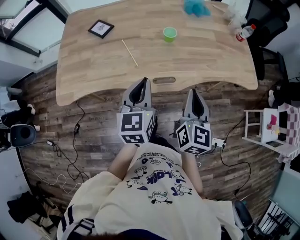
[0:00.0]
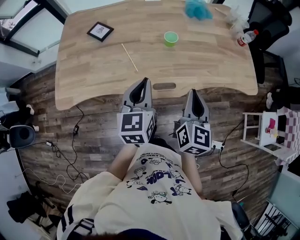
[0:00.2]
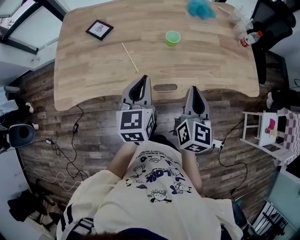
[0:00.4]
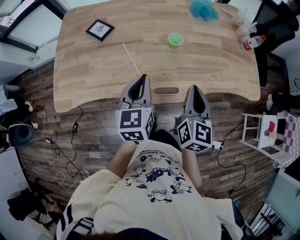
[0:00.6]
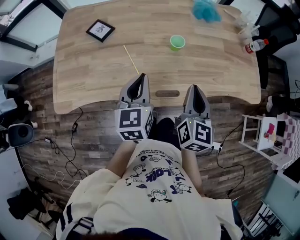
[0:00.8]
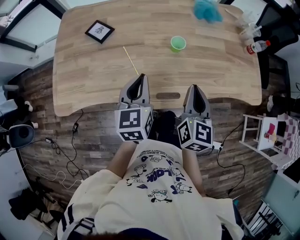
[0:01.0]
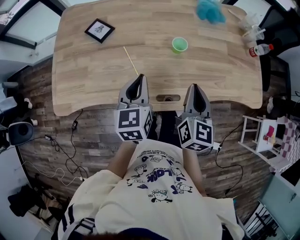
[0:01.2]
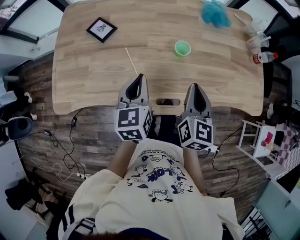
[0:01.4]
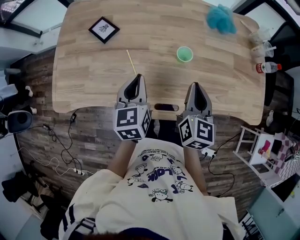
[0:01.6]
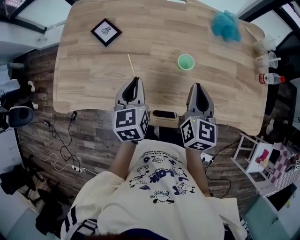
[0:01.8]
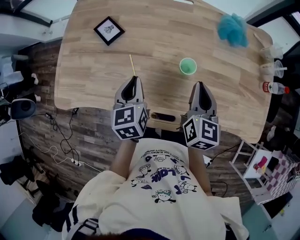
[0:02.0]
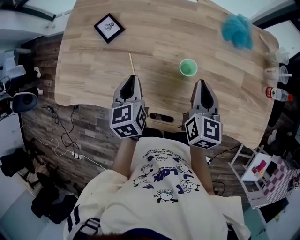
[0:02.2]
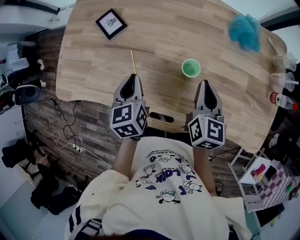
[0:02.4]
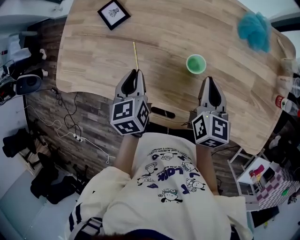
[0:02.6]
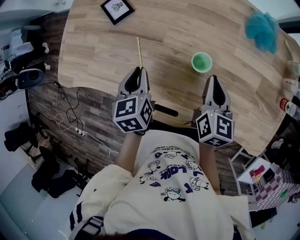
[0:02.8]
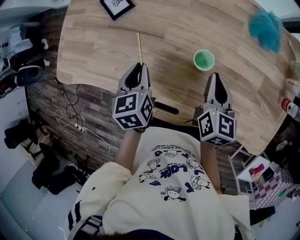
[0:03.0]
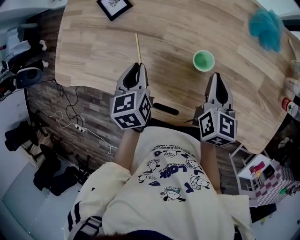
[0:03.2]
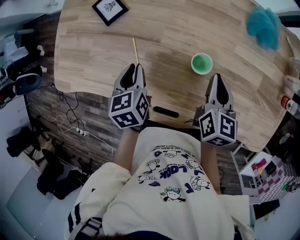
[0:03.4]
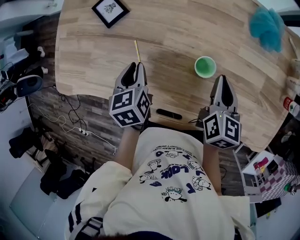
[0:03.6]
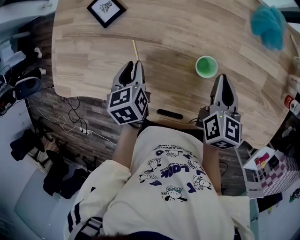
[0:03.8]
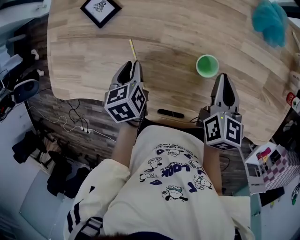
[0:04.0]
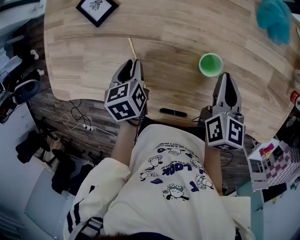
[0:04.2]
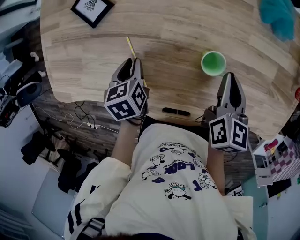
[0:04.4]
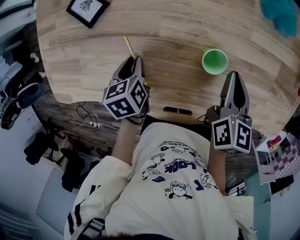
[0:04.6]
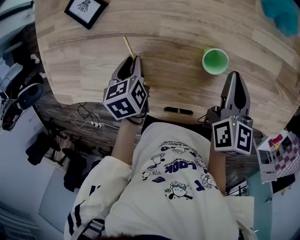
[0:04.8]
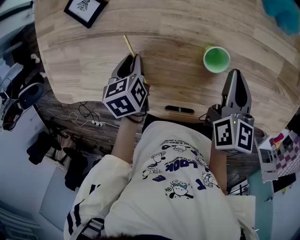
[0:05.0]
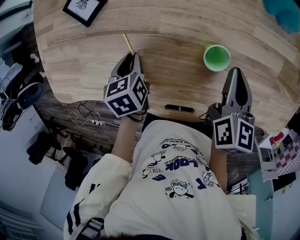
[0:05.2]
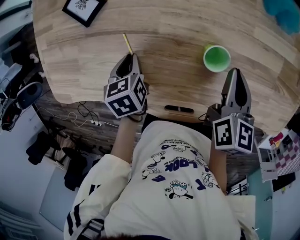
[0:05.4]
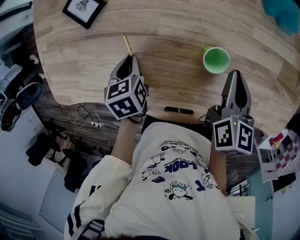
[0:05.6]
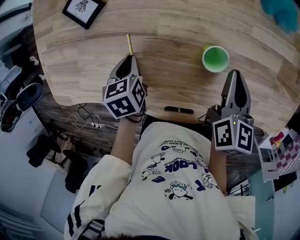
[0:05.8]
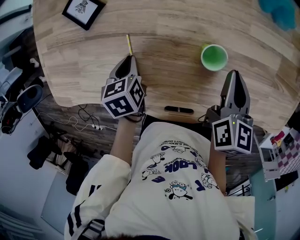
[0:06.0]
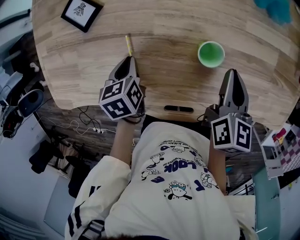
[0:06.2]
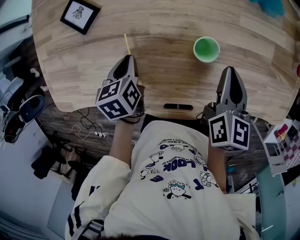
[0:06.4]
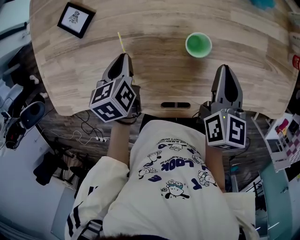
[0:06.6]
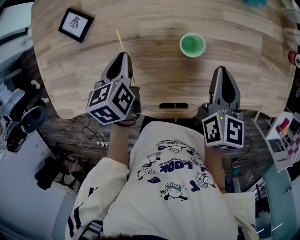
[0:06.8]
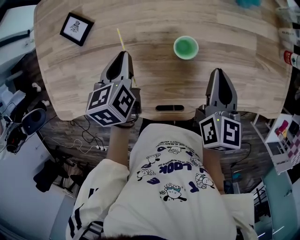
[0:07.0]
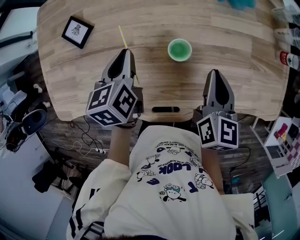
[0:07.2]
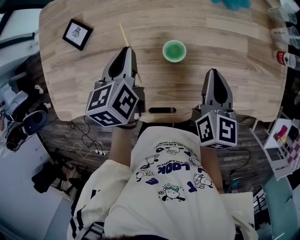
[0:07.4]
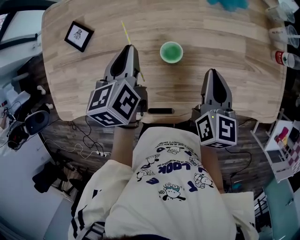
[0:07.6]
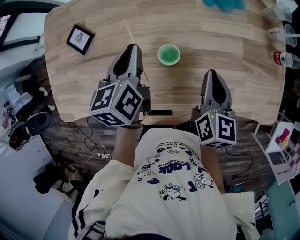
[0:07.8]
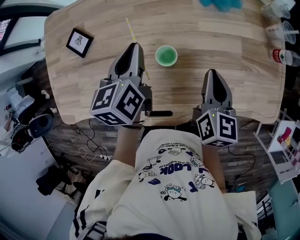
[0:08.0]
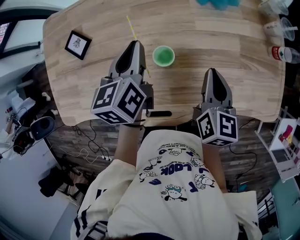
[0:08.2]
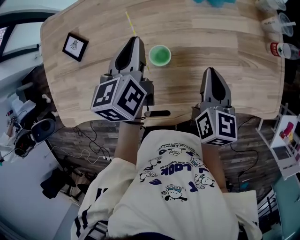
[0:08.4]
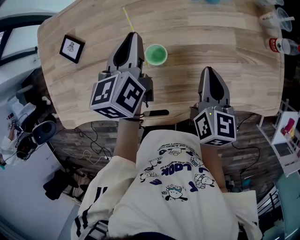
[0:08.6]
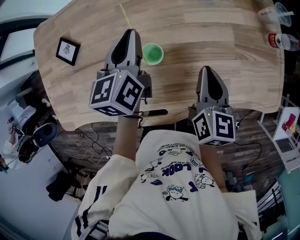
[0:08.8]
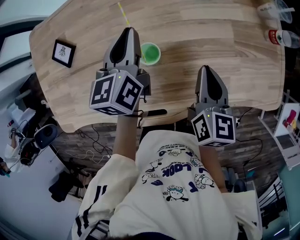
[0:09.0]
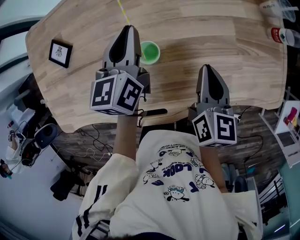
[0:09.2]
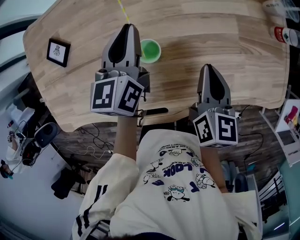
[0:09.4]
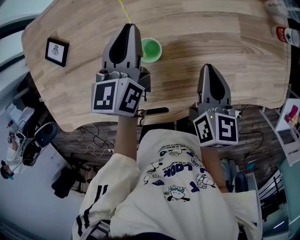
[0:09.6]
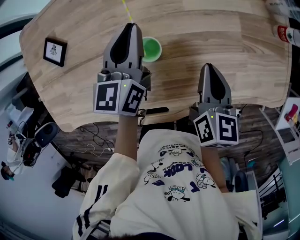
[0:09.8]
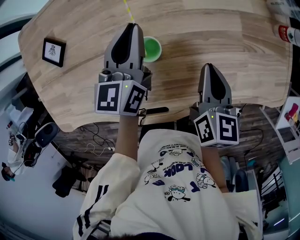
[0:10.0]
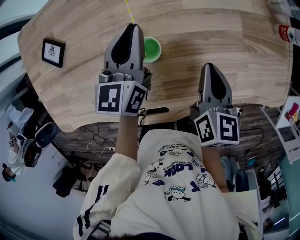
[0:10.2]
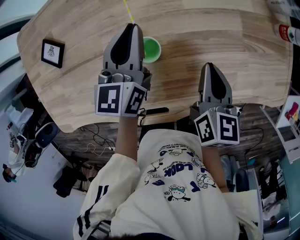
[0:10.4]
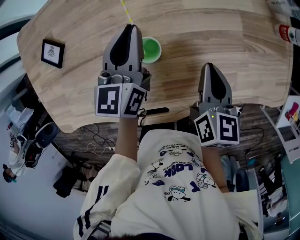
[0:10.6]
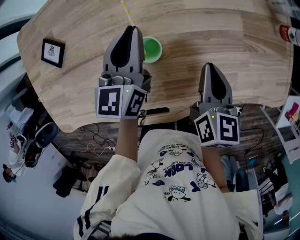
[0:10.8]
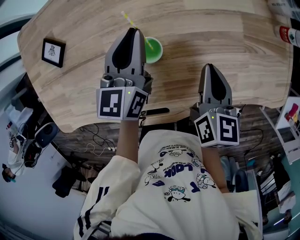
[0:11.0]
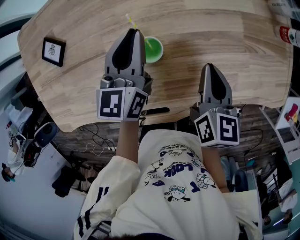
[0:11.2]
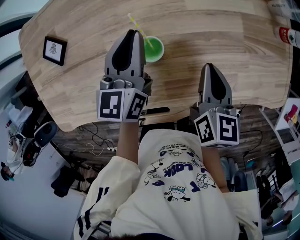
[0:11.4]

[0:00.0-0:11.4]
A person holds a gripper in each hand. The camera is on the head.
0:00.0 to 0:01.4: The right gripper heads forward, covering some 15 cm, while the left gripper heads forward and to the left, covering some 15 cm.
0:01.4 to 0:02.8: The left gripper shifts roughly 5 cm downward, and swivels approximately 30 degrees, while the right gripper travels forward and downward by some 15 cm, and swivels about 20 degrees.
0:02.8 to 0:04.2: The left gripper heads downward, covering approximately 10 cm.
0:04.2 to 0:05.6: There are only small adjustments of the grippers.
0:05.6 to 0:07.2: The left gripper moves upward, to the right and forward, about 15 cm, and turns by some 30 degrees; the right gripper changes place by approximately 5 cm.
0:07.2 to 0:08.6: The right gripper heads to the right, covering about 5 cm, while the left gripper moves to the right, forward and upward, some 15 cm.
0:08.6 to 0:10.0: The left gripper shifts by about 5 cm.
0:10.0 to 0:11.4: The grippers move only a little.

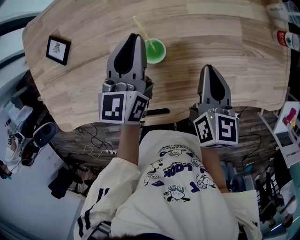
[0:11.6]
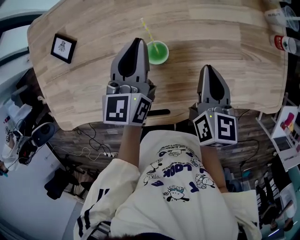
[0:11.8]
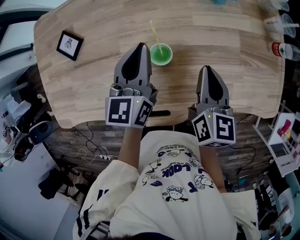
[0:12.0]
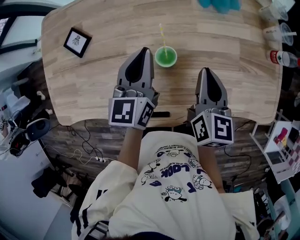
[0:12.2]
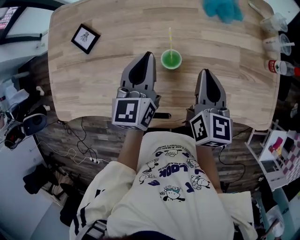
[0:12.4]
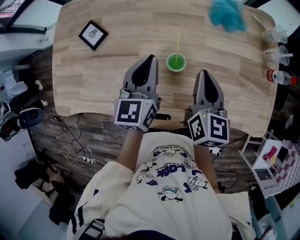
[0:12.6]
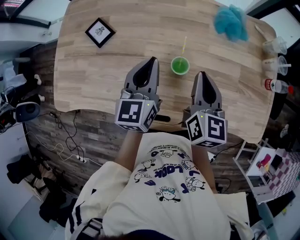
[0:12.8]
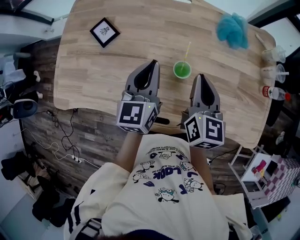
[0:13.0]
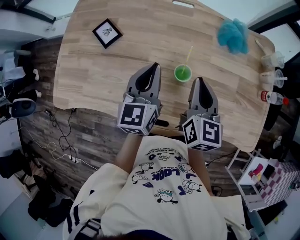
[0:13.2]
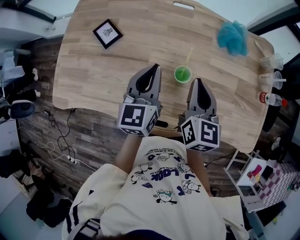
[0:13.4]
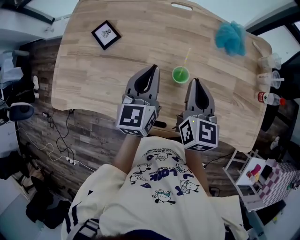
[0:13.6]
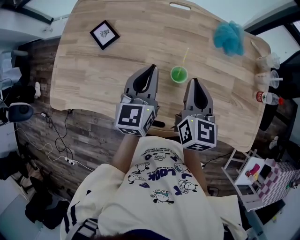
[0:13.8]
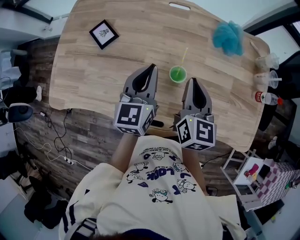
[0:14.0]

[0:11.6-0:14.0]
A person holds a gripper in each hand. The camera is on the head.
0:11.6 to 0:12.8: The left gripper shifts about 10 cm upward, to the left and backward. The right gripper goes about 15 cm upward and to the left, and rotates roughly 20 degrees.
0:12.8 to 0:14.0: The grippers stay close to where they were, moving slightly.

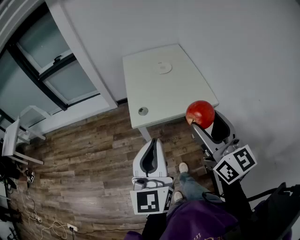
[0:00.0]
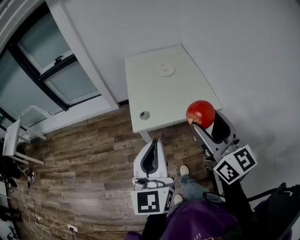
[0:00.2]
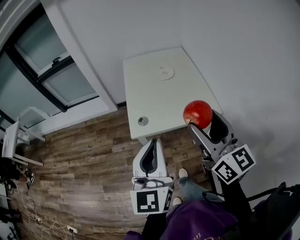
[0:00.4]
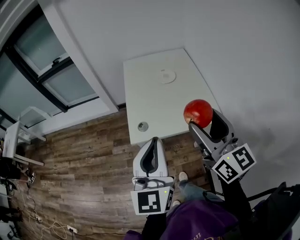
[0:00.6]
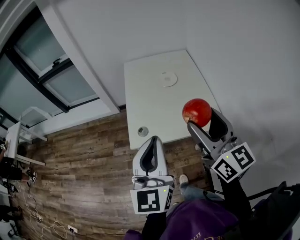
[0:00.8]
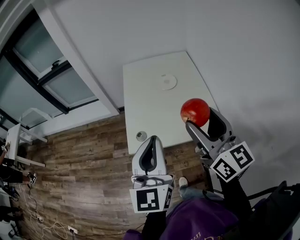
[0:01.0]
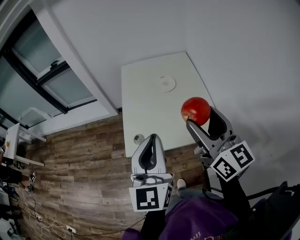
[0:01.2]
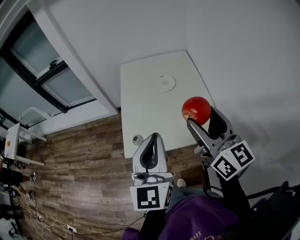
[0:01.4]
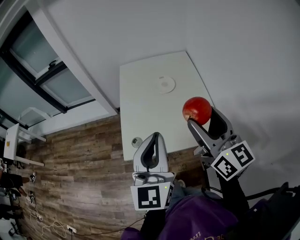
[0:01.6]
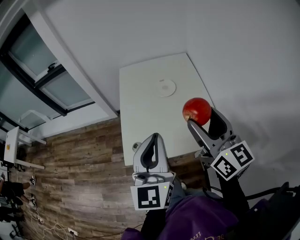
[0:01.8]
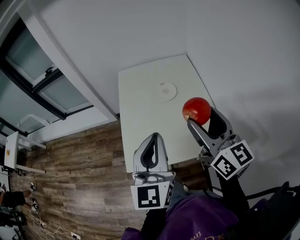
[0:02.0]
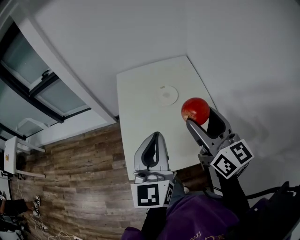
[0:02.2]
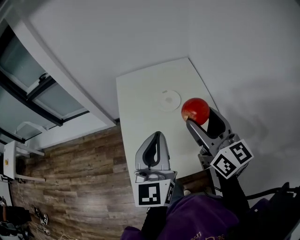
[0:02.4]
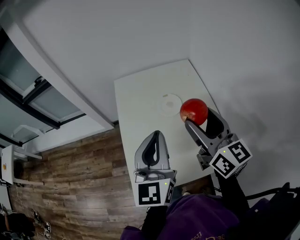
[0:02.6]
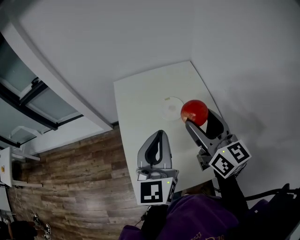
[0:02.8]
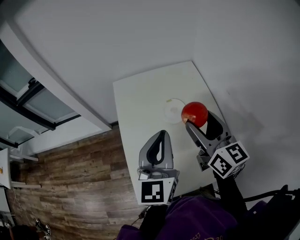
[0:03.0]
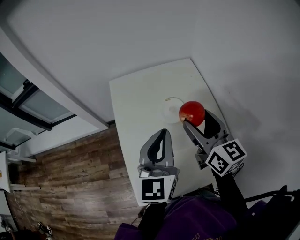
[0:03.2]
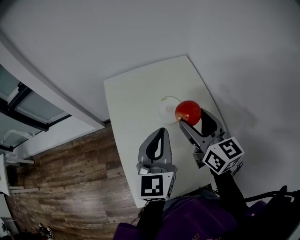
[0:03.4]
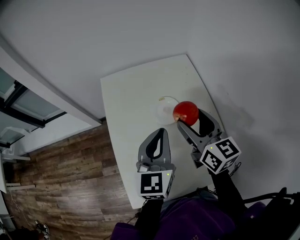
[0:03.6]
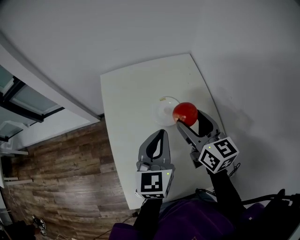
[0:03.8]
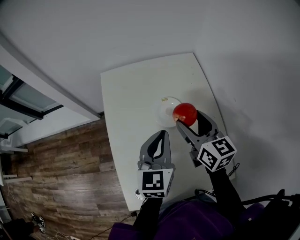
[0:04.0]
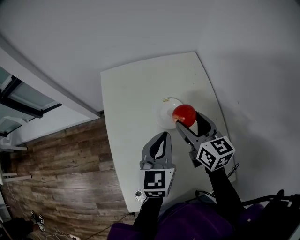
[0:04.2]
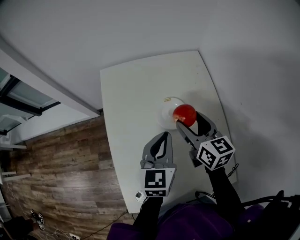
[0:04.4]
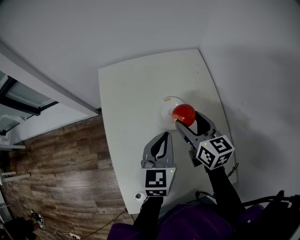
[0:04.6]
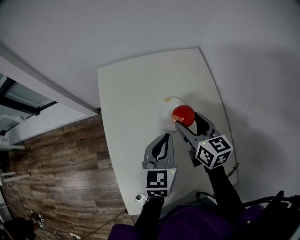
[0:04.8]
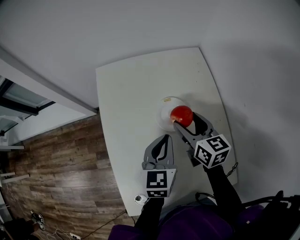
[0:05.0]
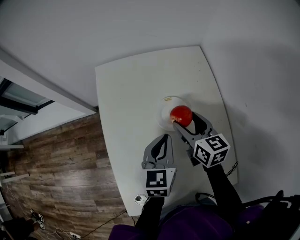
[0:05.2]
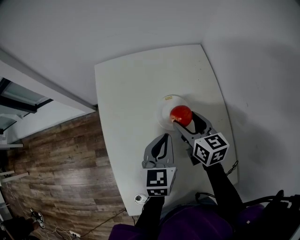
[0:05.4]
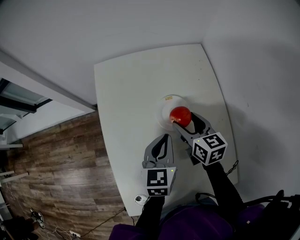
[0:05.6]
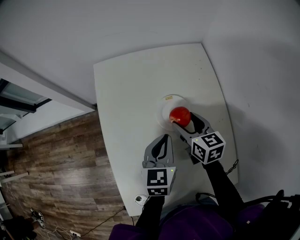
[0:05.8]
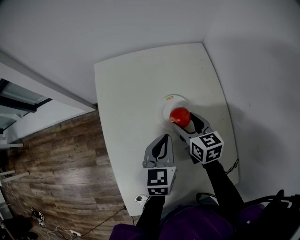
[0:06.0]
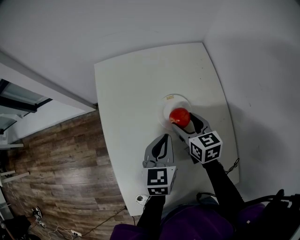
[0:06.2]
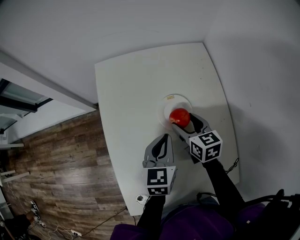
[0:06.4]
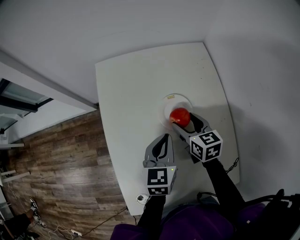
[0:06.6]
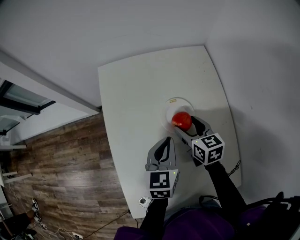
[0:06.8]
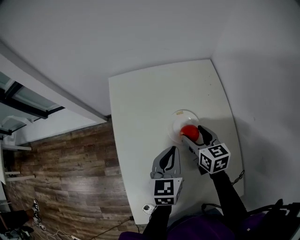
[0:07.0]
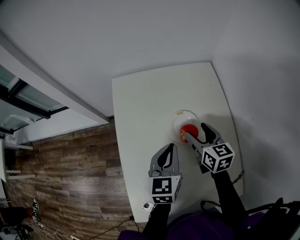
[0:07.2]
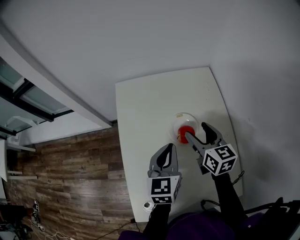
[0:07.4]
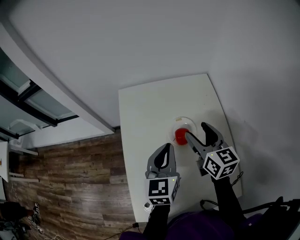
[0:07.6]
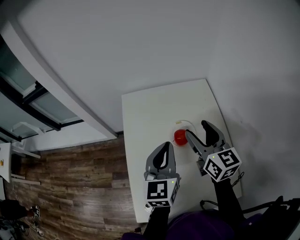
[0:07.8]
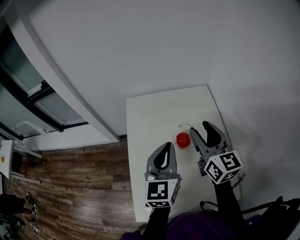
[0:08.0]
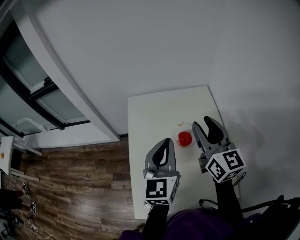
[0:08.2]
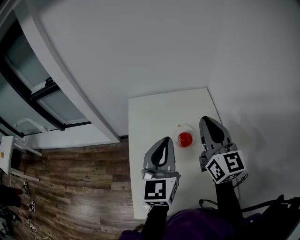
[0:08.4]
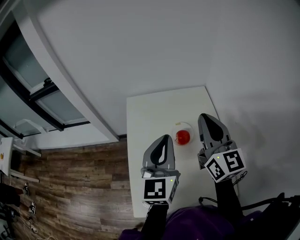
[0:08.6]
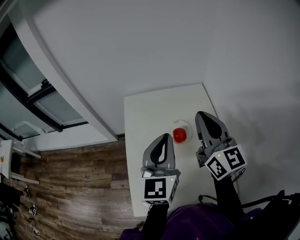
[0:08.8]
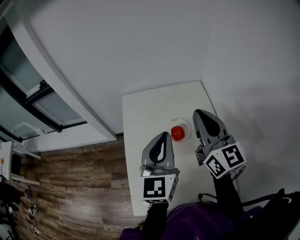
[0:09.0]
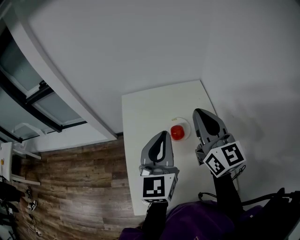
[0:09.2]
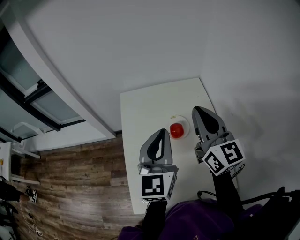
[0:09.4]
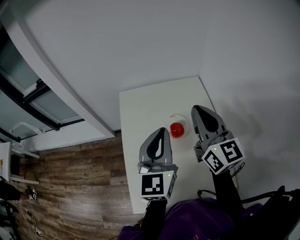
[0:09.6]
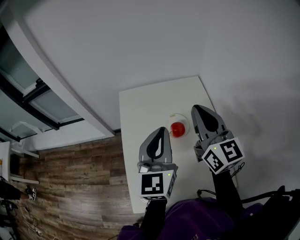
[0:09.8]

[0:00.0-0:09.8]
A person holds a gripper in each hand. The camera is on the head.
0:00.0 to 0:01.4: The left gripper goes about 25 cm forward and to the right. Meanwhile the right gripper shifts about 25 cm forward.
0:01.4 to 0:02.8: Both grippers move forward, approximately 25 cm.
0:02.8 to 0:04.2: Both grippers travel together downward and forward, roughly 15 cm. The left gripper rotates approximately 20 degrees.
0:04.2 to 0:05.6: The grippers both shift downward by about 10 cm.
0:05.6 to 0:07.0: The grippers move only a little.
0:07.0 to 0:08.4: Both grippers travel together upward, about 25 cm. The right gripper tilts its fingers some 40 degrees upward, and closes, while the left gripper swivels approximately 30 degrees.
0:08.4 to 0:09.8: The grippers stay close to where they were, moving slightly.
